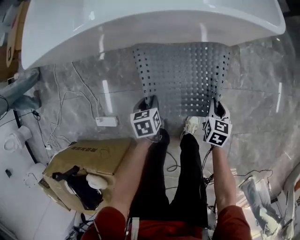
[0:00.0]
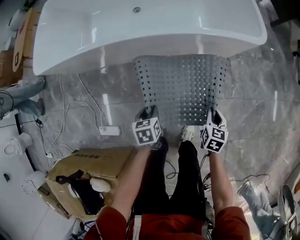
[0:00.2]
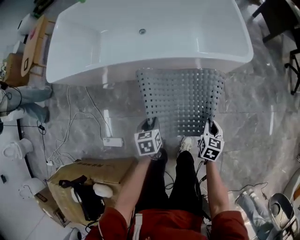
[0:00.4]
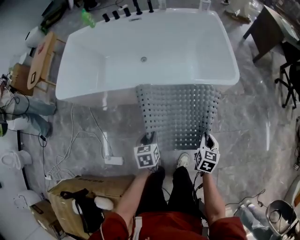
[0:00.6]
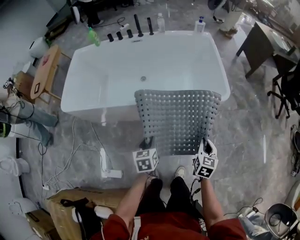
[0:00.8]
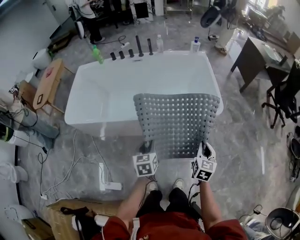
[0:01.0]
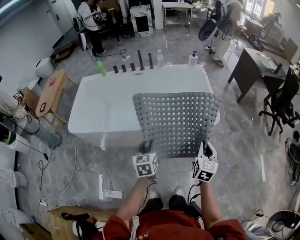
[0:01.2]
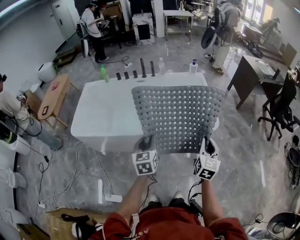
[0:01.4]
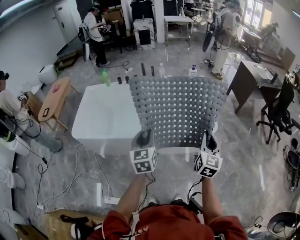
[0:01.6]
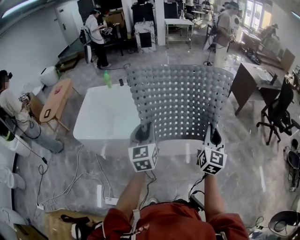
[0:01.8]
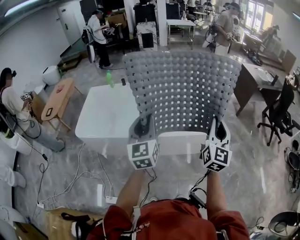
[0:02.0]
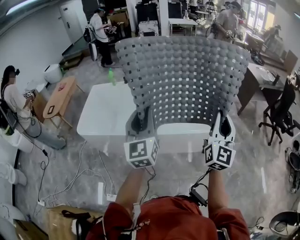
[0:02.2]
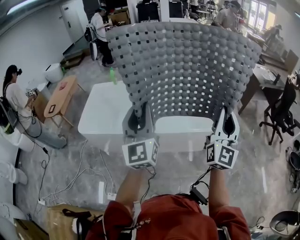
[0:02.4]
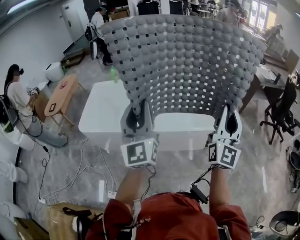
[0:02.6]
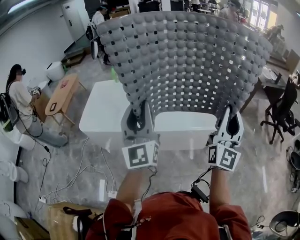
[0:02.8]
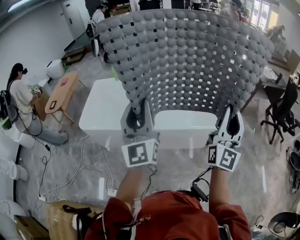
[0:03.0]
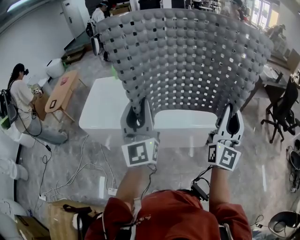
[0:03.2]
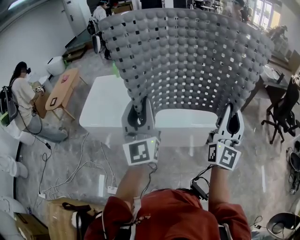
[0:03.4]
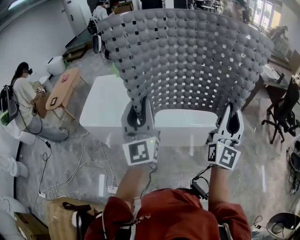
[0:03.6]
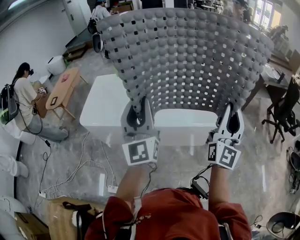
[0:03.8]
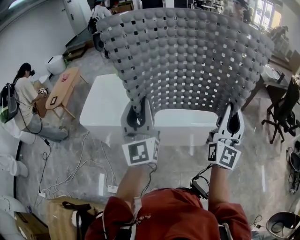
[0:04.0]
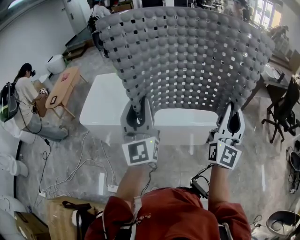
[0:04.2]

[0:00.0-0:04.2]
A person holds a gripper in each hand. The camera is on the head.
0:00.0 to 0:01.4: The two grippers go some 60 cm upward. The right gripper tips its fingers upward by some 40 degrees. The left gripper tips its fingers upward by approximately 40 degrees.
0:01.4 to 0:02.8: Both grippers travel together upward, approximately 30 cm. The left gripper tips its fingers upward by about 50 degrees; the right gripper angles its fingers upward, by about 50 degrees.
0:02.8 to 0:04.2: The grippers stay close to where they were, moving slightly.

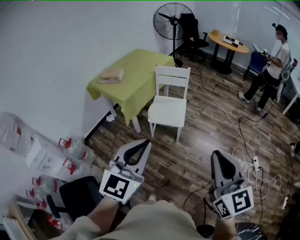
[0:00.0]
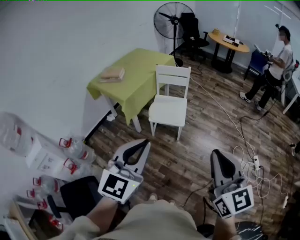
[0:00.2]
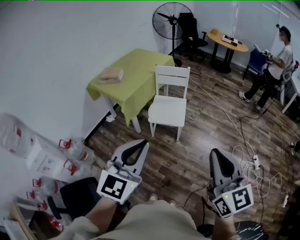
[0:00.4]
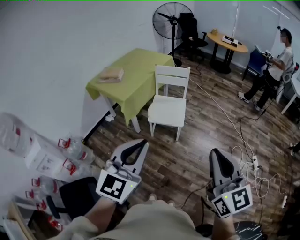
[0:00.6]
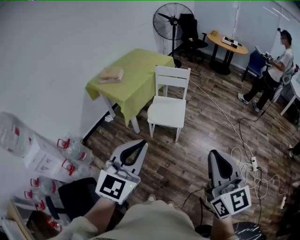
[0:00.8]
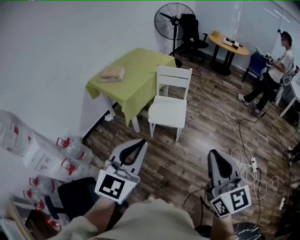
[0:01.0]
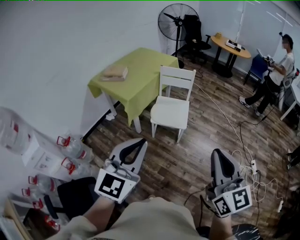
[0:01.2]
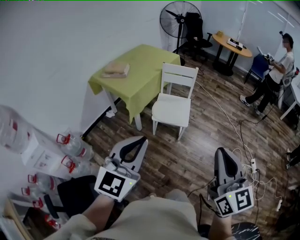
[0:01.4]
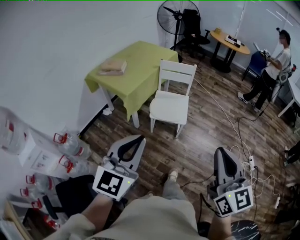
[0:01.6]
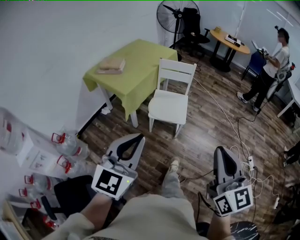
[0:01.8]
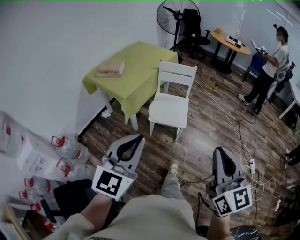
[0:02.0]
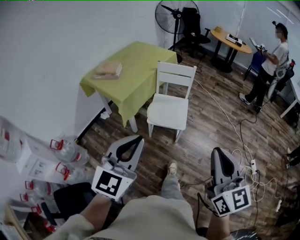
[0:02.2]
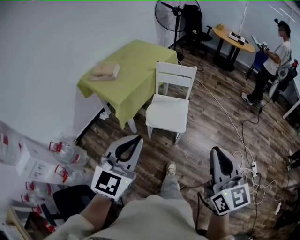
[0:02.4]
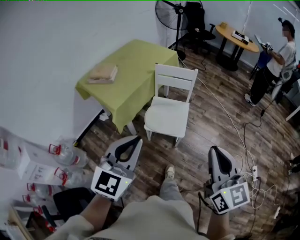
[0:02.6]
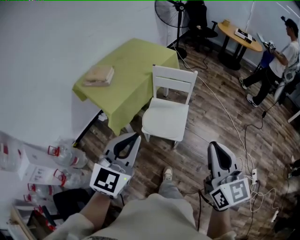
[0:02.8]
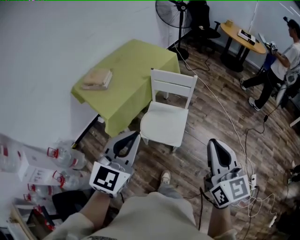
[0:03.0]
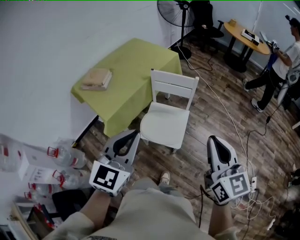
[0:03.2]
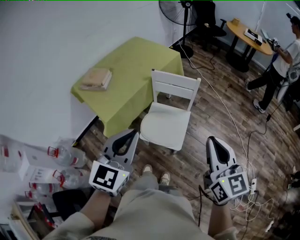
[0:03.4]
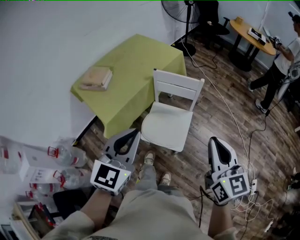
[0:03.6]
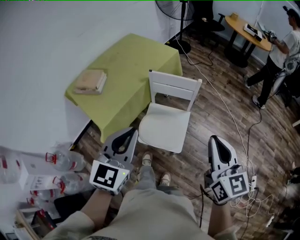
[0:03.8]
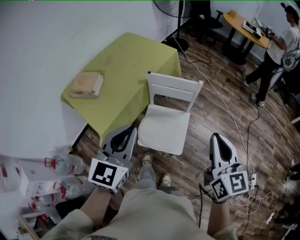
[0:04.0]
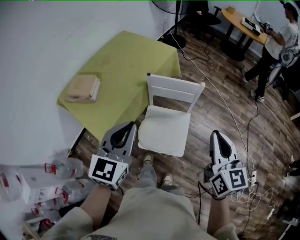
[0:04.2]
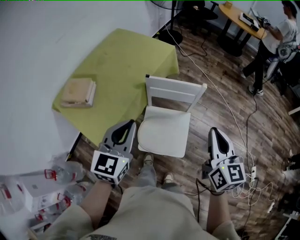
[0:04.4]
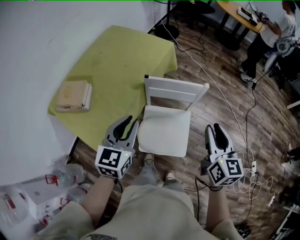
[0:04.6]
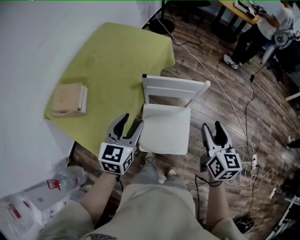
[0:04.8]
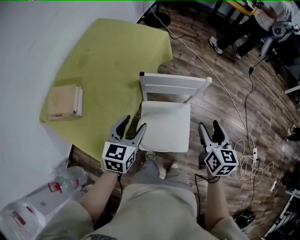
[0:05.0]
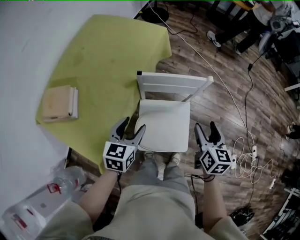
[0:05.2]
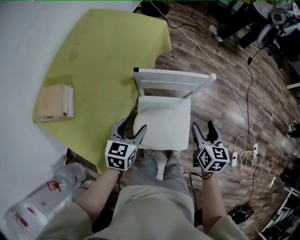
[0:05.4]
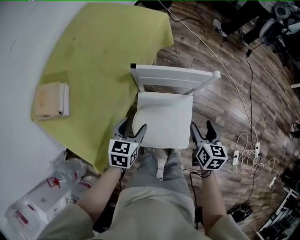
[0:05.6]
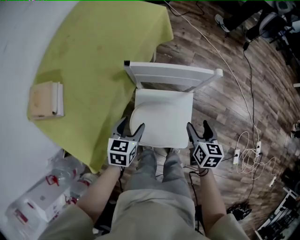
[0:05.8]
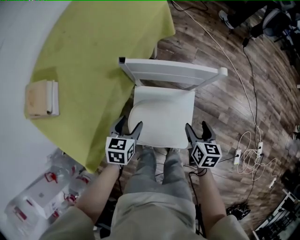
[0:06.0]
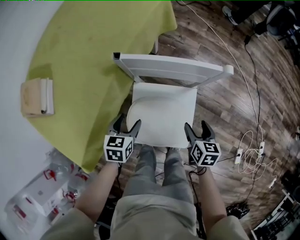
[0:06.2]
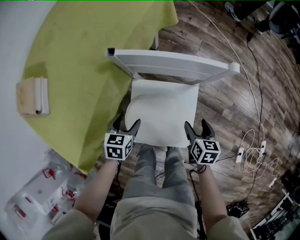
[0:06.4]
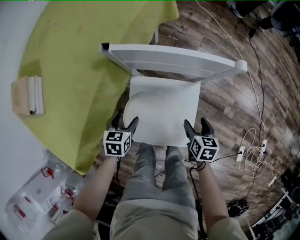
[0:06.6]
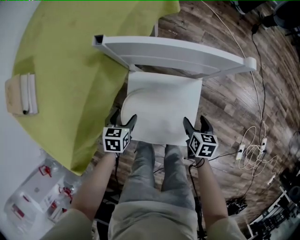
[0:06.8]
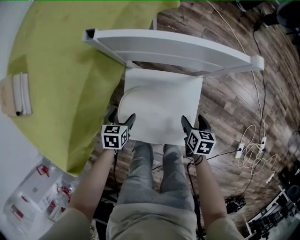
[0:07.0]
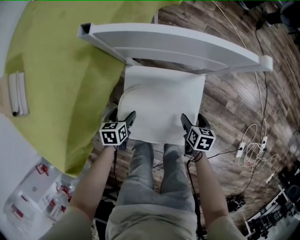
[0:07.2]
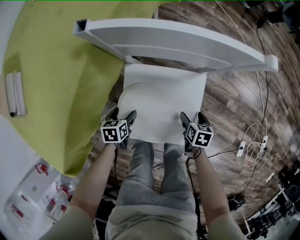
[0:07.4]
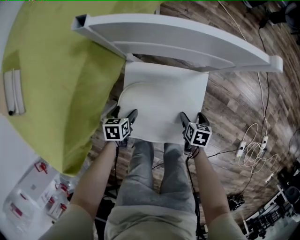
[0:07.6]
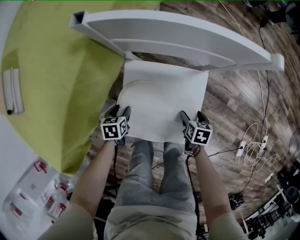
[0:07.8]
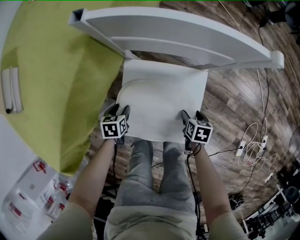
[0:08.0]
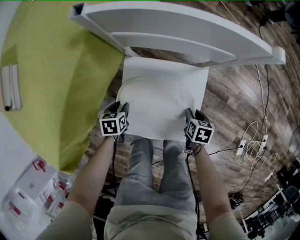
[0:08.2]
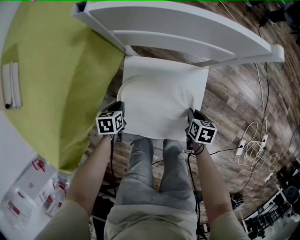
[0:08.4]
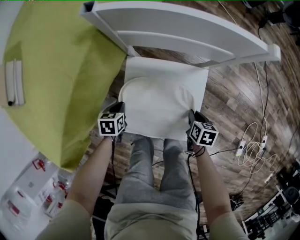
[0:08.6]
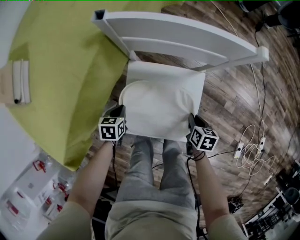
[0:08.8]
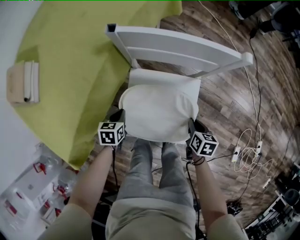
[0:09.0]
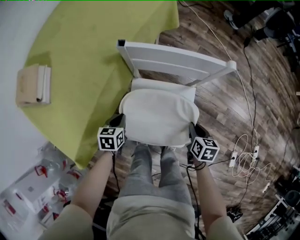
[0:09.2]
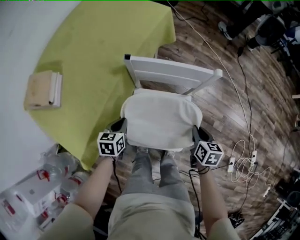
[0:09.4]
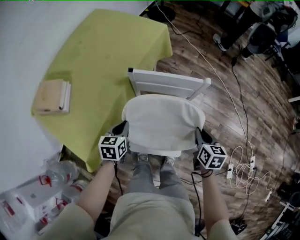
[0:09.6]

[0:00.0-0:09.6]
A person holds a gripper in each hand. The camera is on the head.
0:00.0 to 0:01.6: The grippers both shift to the left by approximately 10 cm.
0:01.6 to 0:03.2: The two grippers go about 35 cm forward.
0:03.2 to 0:04.8: Both grippers travel together forward and downward, some 35 cm. The right gripper turns by some 30 degrees, and opens up. Meanwhile the left gripper swivels about 20 degrees, and opens.
0:04.8 to 0:06.4: Both grippers move downward, about 35 cm. The right gripper rotates about 30 degrees; the left gripper turns by some 30 degrees.
0:06.4 to 0:08.0: Both grippers move downward, roughly 20 cm. The right gripper changes its angle by about 20 degrees.
0:08.0 to 0:09.6: The grippers both shift upward by about 35 cm. The left gripper changes its angle by approximately 30 degrees, and closes; the right gripper turns by about 30 degrees, and closes its fingers.

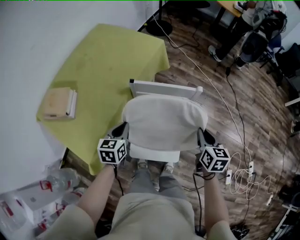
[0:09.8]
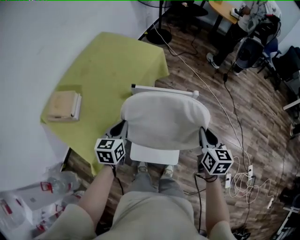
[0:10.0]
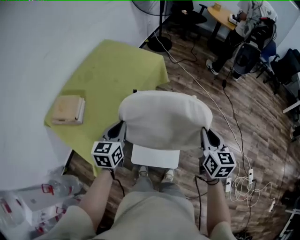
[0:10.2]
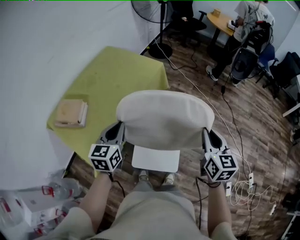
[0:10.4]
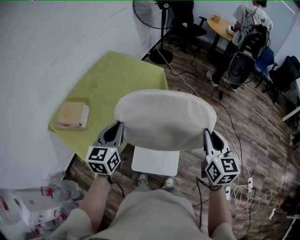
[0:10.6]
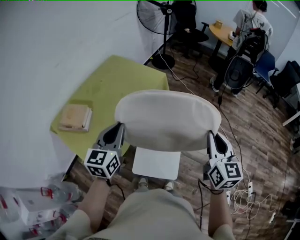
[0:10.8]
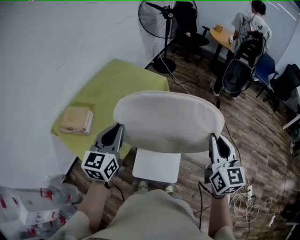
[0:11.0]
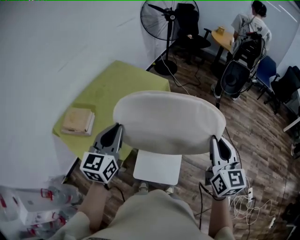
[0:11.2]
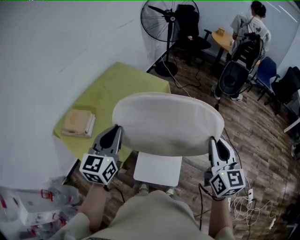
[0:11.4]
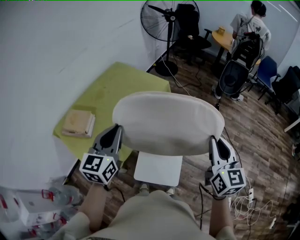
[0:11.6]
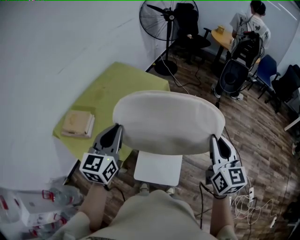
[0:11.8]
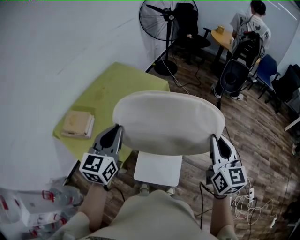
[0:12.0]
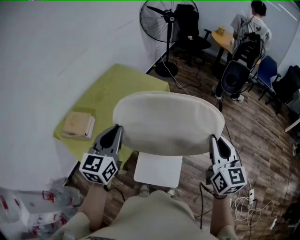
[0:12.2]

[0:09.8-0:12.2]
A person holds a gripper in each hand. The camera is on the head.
0:09.8 to 0:11.0: Both grippers move upward, approximately 30 cm. The left gripper changes its angle by about 30 degrees, while the right gripper rotates approximately 30 degrees.
0:11.0 to 0:12.2: There are only small adjustments of the grippers.

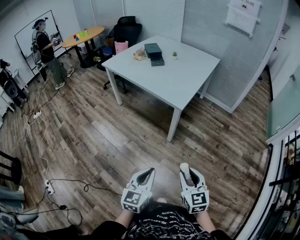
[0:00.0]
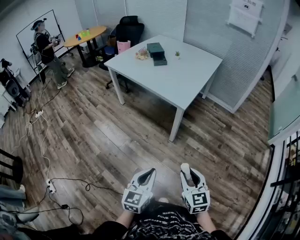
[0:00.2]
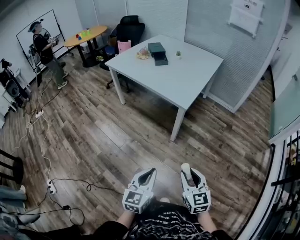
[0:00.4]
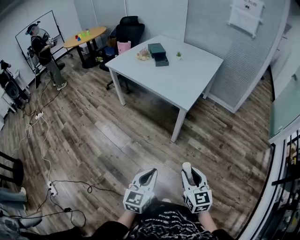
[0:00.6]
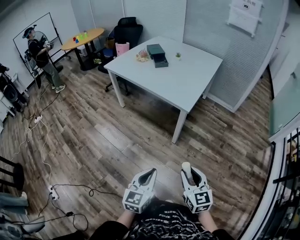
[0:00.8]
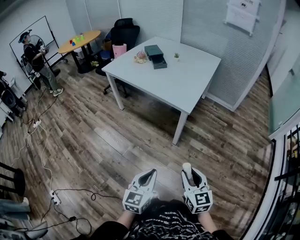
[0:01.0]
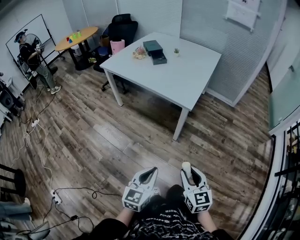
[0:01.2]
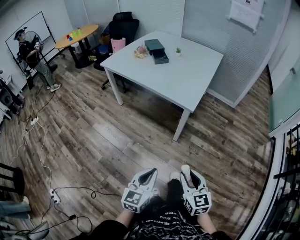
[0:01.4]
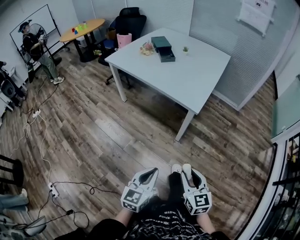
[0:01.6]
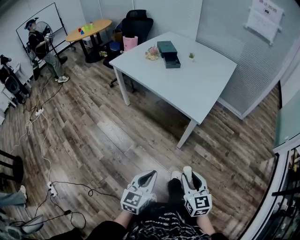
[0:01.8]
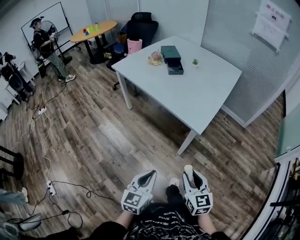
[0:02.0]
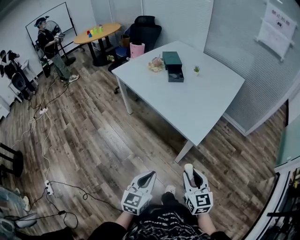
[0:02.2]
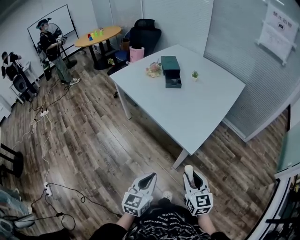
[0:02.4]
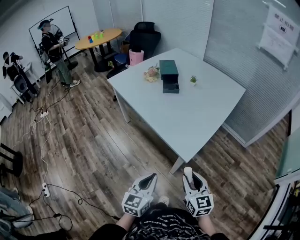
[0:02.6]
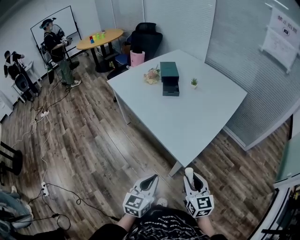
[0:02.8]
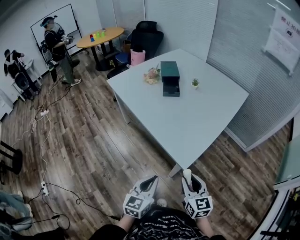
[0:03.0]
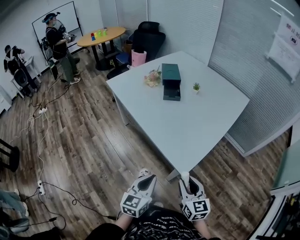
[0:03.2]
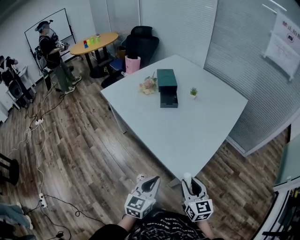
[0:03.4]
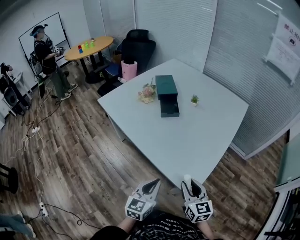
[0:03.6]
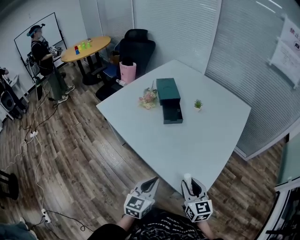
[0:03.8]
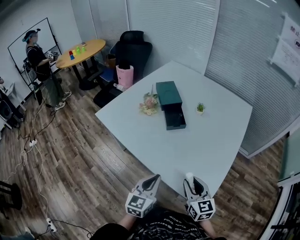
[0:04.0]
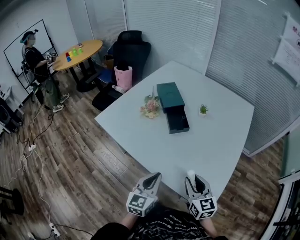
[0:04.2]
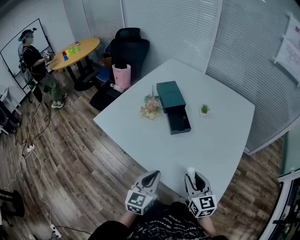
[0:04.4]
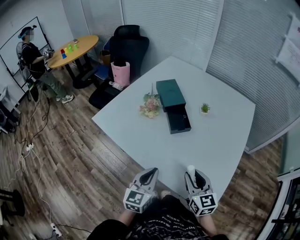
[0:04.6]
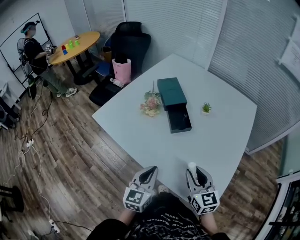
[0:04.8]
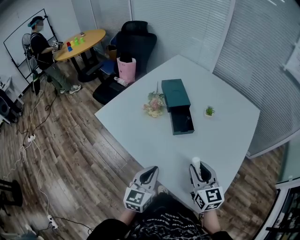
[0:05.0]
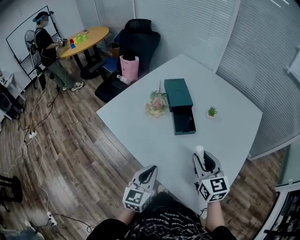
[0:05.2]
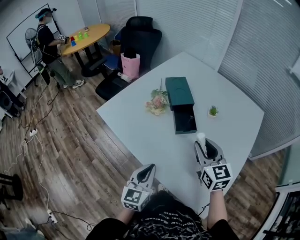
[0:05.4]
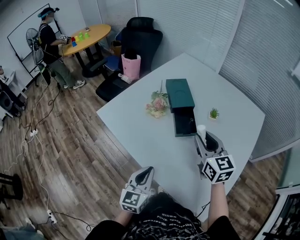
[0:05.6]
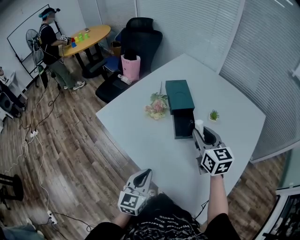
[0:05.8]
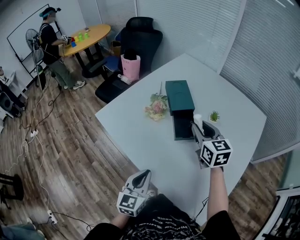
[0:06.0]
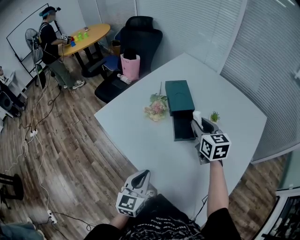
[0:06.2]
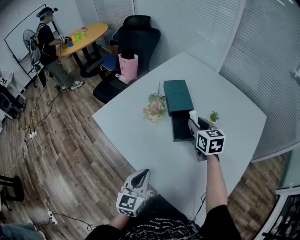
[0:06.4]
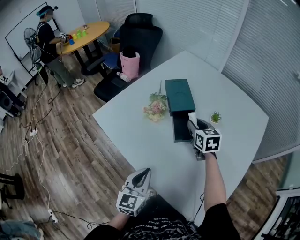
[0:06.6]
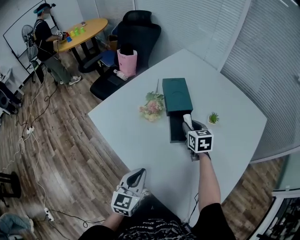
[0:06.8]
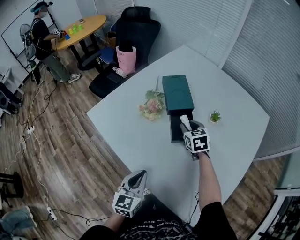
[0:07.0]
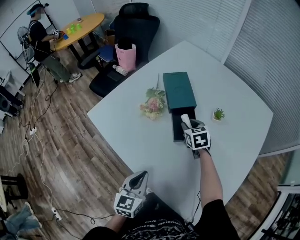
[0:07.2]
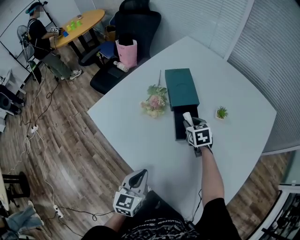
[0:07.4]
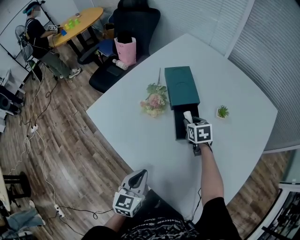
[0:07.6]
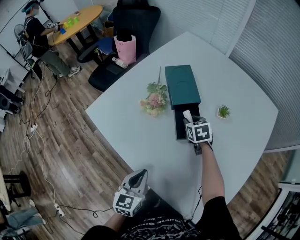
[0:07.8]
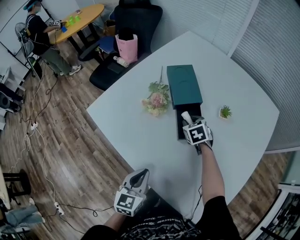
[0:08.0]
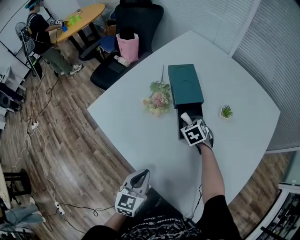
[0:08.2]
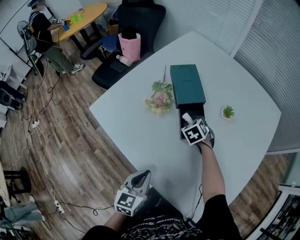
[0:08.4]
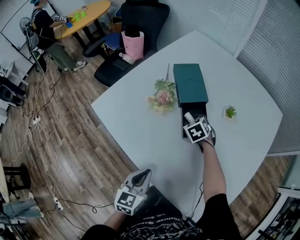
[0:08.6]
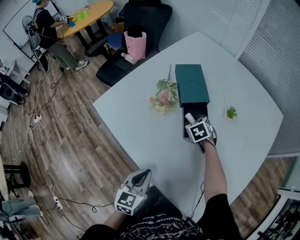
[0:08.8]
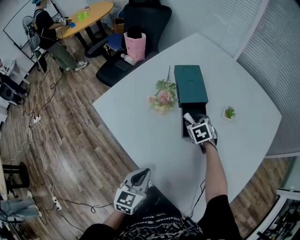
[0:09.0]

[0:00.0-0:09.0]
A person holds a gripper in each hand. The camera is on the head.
0:00.0 to 0:01.6: The two grippers go about 10 cm to the left and forward.
0:01.6 to 0:03.0: The two grippers go approximately 35 cm forward and to the right.
0:03.0 to 0:04.4: The two grippers go approximately 40 cm forward and to the left.
0:04.4 to 0:06.0: The left gripper moves forward, roughly 5 cm. The right gripper is displaced forward by about 30 cm.
0:06.0 to 0:07.6: The right gripper heads downward and forward, covering about 25 cm, and changes its angle by about 30 degrees, while the left gripper moves forward and downward, roughly 10 cm.
0:07.6 to 0:09.0: The right gripper rotates roughly 20 degrees, and opens up.
